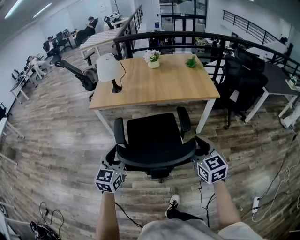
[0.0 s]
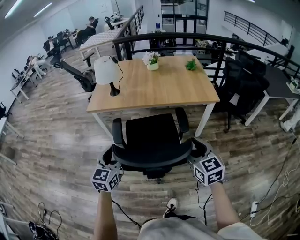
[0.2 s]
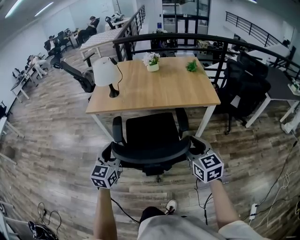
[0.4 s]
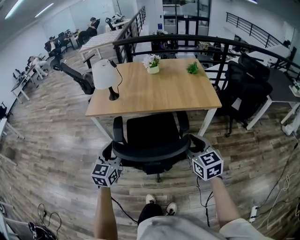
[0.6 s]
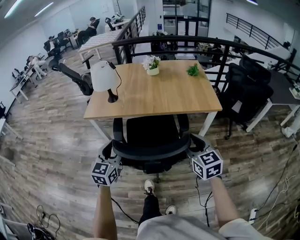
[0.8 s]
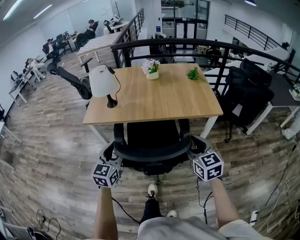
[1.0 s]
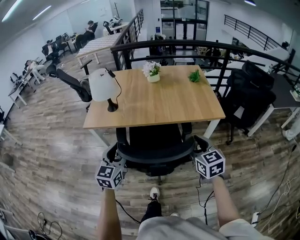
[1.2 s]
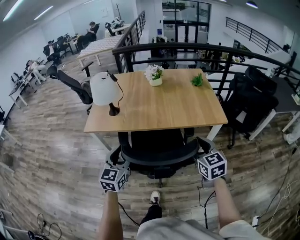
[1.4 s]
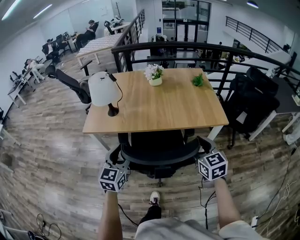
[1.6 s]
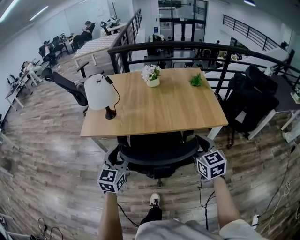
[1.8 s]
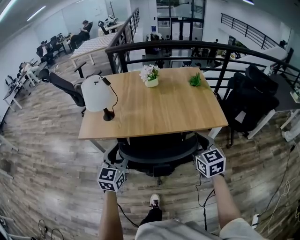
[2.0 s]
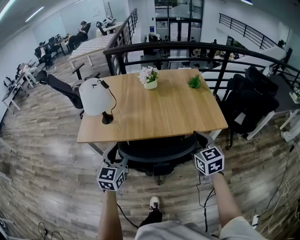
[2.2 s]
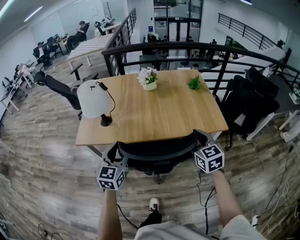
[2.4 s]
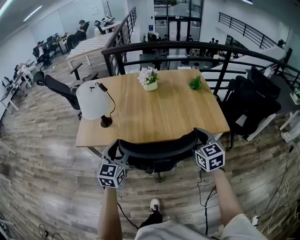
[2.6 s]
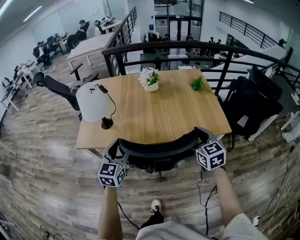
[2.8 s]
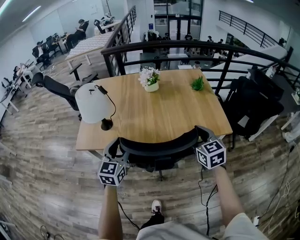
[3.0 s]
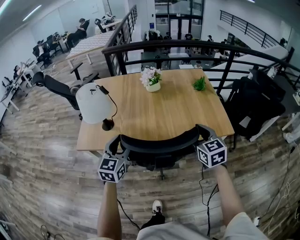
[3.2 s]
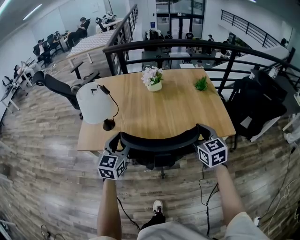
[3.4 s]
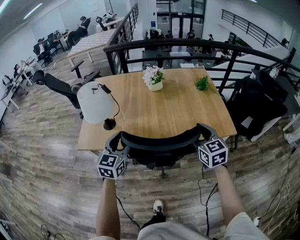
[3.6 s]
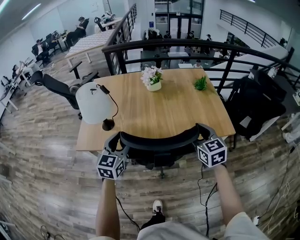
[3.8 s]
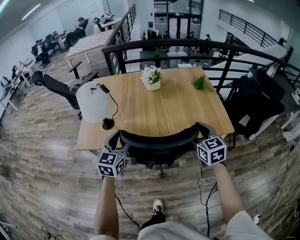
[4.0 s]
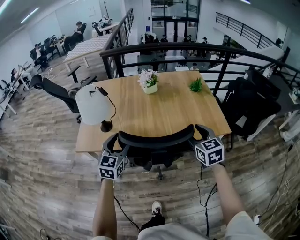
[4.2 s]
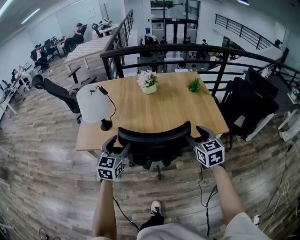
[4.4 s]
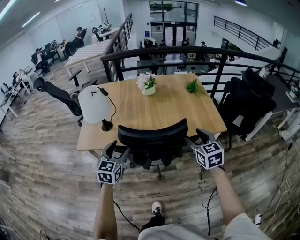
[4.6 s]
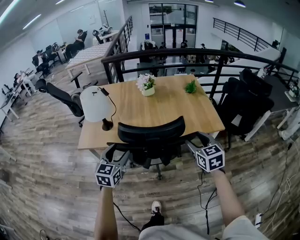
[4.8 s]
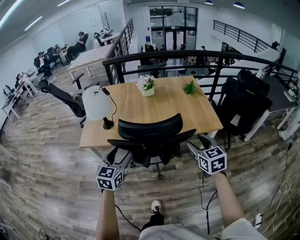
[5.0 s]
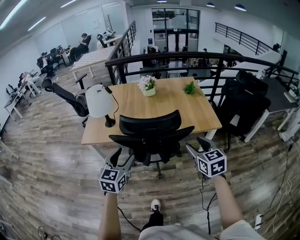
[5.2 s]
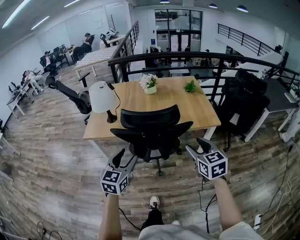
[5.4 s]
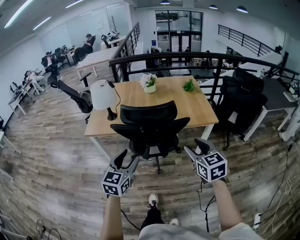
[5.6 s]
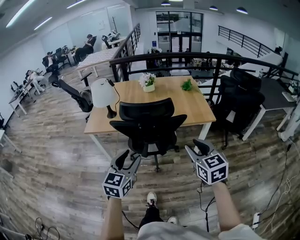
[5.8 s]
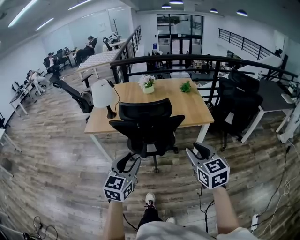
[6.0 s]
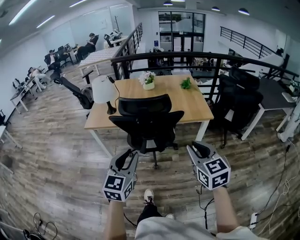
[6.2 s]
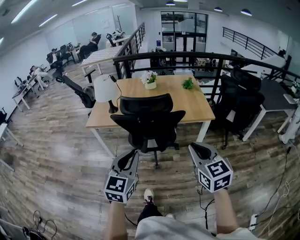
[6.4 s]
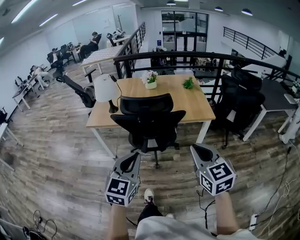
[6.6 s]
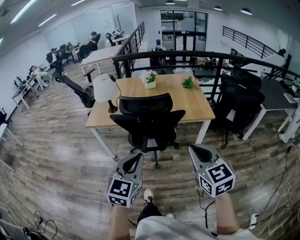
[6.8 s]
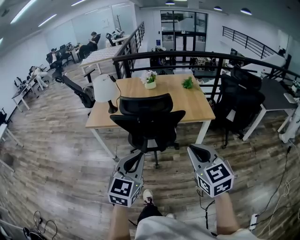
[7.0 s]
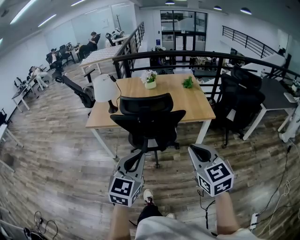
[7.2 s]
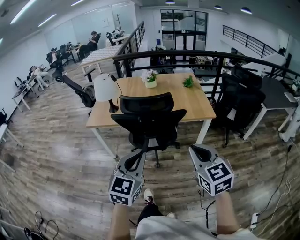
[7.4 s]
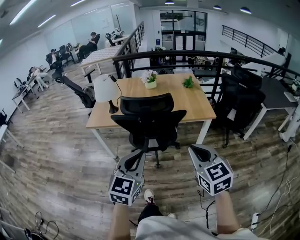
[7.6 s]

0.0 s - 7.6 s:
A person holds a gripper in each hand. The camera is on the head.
0.0 s - 1.6 s: Both grippers travel together forward, about 25 cm.
1.6 s - 3.0 s: The grippers both shift forward by some 15 cm.
3.0 s - 4.6 s: The right gripper goes approximately 5 cm backward.
4.6 s - 6.0 s: The right gripper shifts some 30 cm backward, and closes up, while the left gripper shifts roughly 35 cm backward and to the right, and closes.
6.0 s - 7.6 s: The right gripper closes, while the left gripper changes place by approximately 5 cm, and closes its fingers.

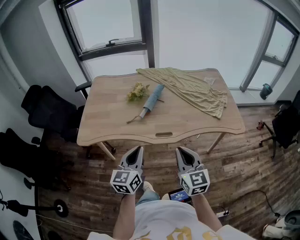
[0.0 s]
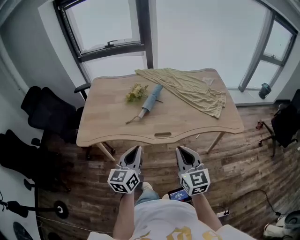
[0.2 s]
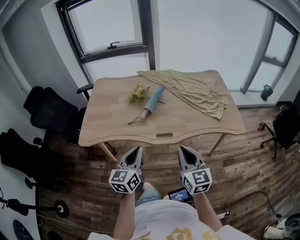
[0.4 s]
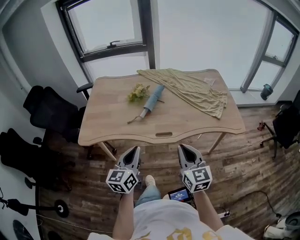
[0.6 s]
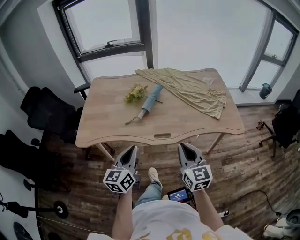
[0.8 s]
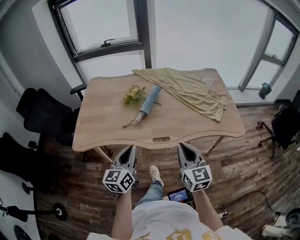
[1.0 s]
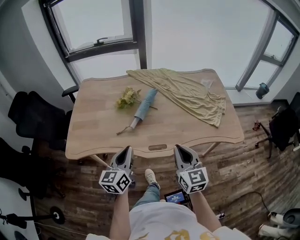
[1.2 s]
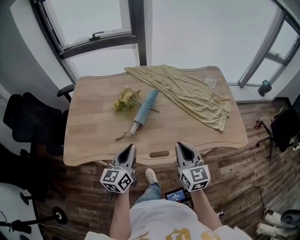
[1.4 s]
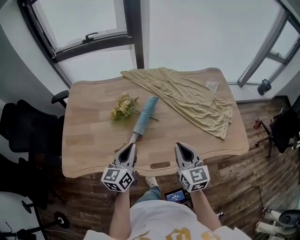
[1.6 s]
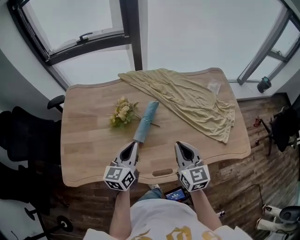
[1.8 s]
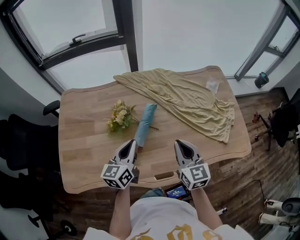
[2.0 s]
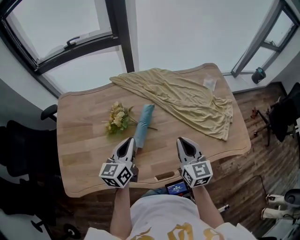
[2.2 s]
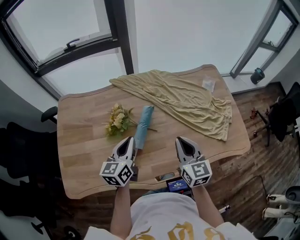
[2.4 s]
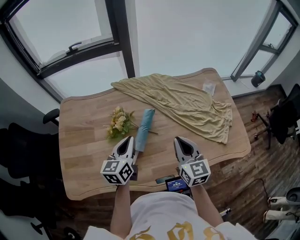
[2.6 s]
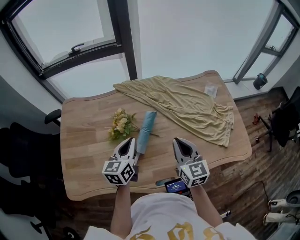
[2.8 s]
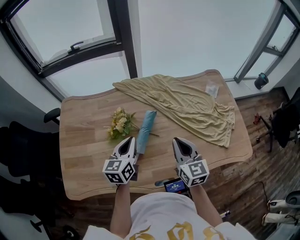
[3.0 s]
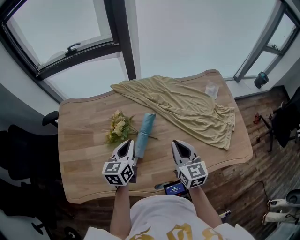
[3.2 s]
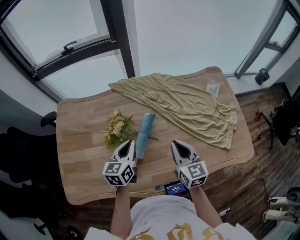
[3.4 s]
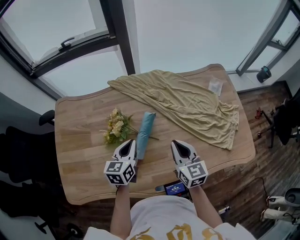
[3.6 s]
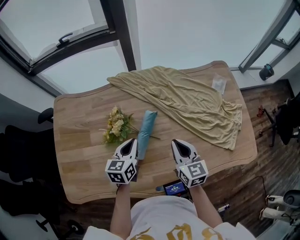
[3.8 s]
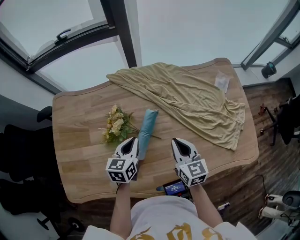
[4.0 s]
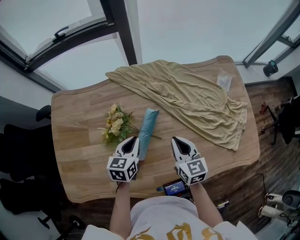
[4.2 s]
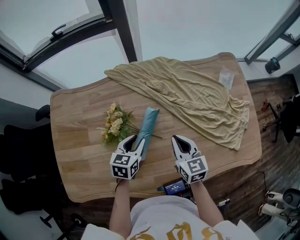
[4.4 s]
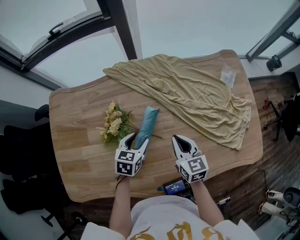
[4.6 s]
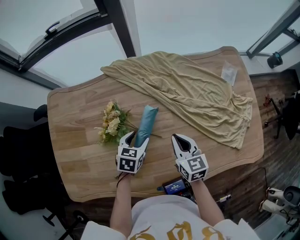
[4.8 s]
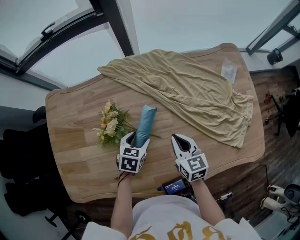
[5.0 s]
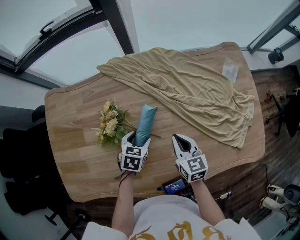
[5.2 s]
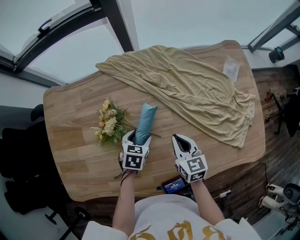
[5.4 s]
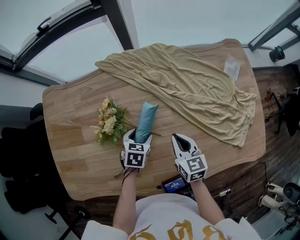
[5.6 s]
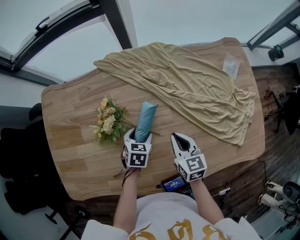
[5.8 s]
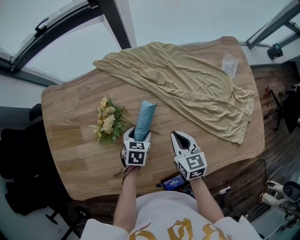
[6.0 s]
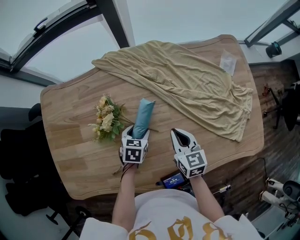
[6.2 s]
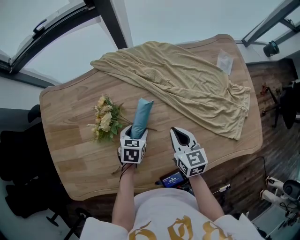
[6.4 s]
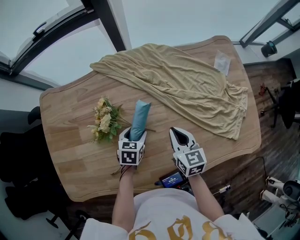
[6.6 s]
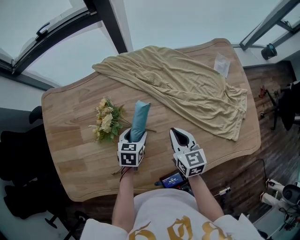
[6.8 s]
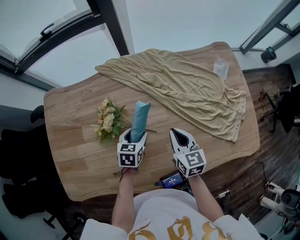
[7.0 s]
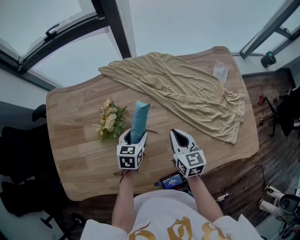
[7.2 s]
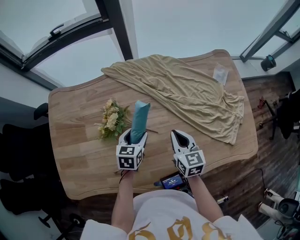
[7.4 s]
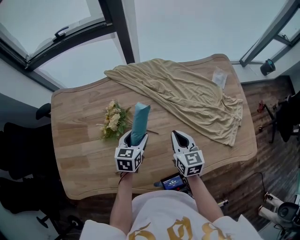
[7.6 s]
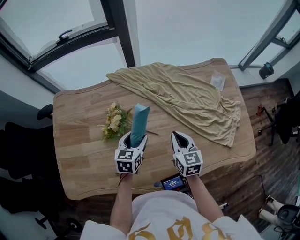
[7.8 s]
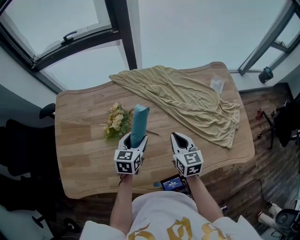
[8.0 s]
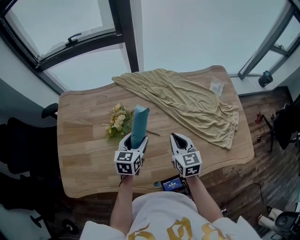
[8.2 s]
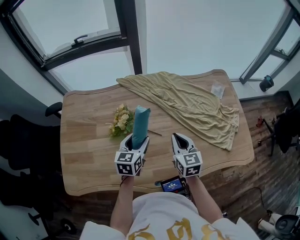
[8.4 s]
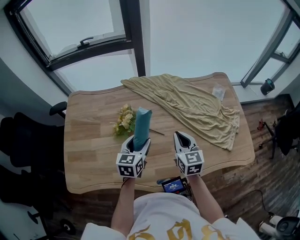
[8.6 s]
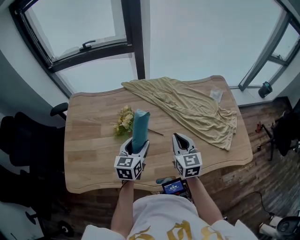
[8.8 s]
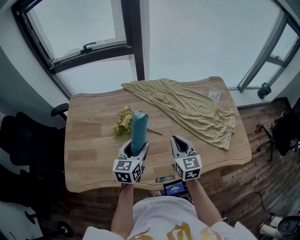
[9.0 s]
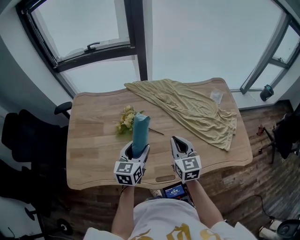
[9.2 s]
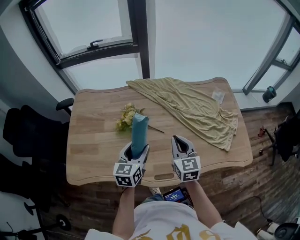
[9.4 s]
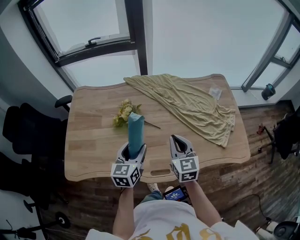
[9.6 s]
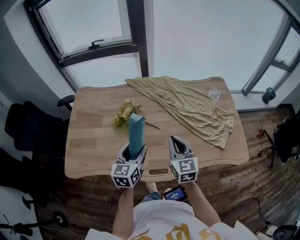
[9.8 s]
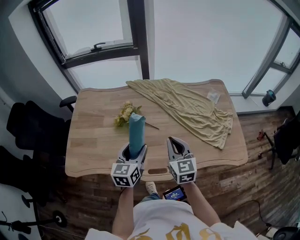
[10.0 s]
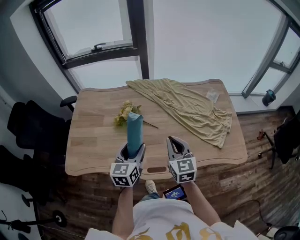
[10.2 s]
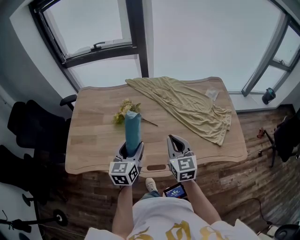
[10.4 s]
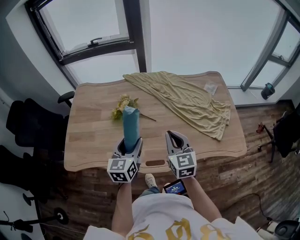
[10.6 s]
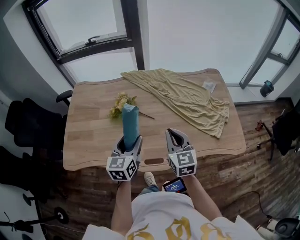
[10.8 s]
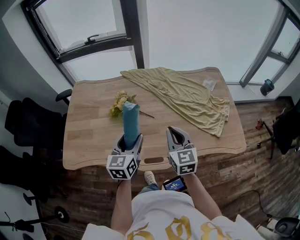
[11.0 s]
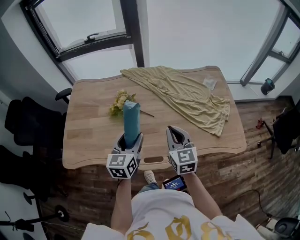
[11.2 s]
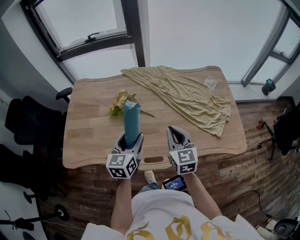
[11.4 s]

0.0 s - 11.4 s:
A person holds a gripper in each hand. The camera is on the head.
0.0 s - 1.4 s: Both grippers travel together forward, roughly 20 cm.
1.4 s - 2.8 s: Both grippers move forward, about 20 cm.
2.8 s - 4.2 s: The grippers both shift downward and forward by about 15 cm.
4.2 s - 5.6 s: The right gripper shifts approximately 10 cm downward. The left gripper shifts about 10 cm downward, rotates some 30 degrees, and opens.
5.6 s - 7.2 s: The grippers both shift upward by about 5 cm.
7.2 s - 8.6 s: The left gripper is displaced upward and backward by roughly 15 cm. Meanwhile the right gripper shifts some 10 cm upward.
8.6 s - 10.0 s: The two grippers go roughly 15 cm backward and upward.
10.0 s - 11.4 s: The grippers stay close to where they were, moving slightly.

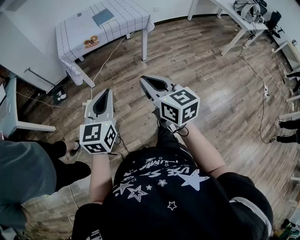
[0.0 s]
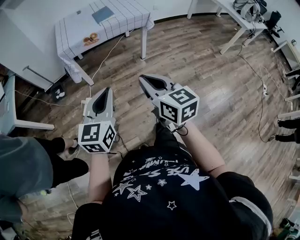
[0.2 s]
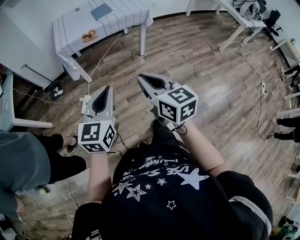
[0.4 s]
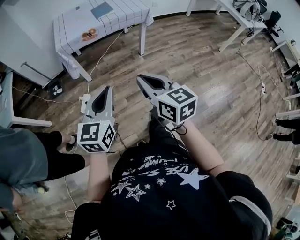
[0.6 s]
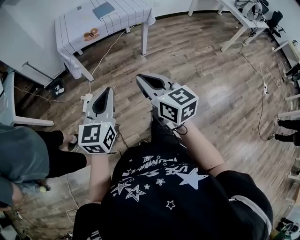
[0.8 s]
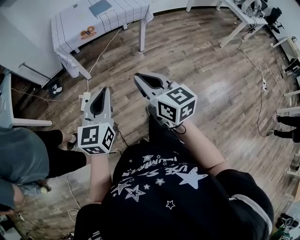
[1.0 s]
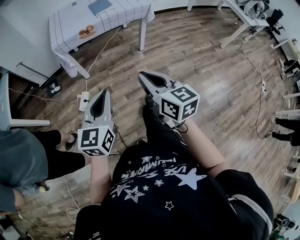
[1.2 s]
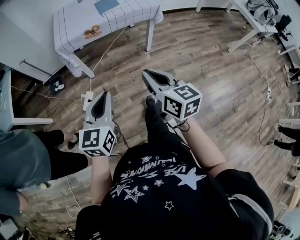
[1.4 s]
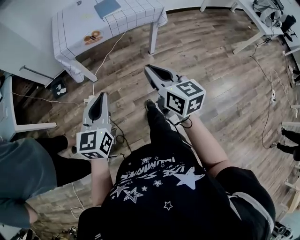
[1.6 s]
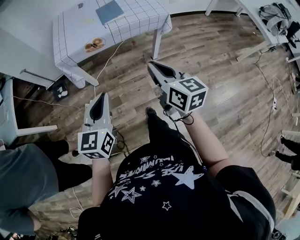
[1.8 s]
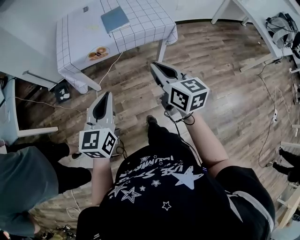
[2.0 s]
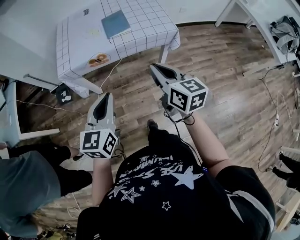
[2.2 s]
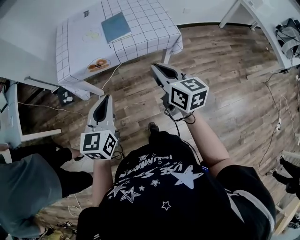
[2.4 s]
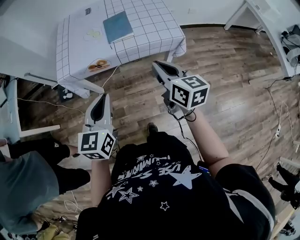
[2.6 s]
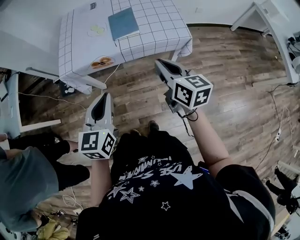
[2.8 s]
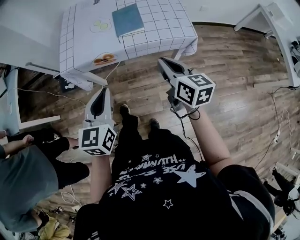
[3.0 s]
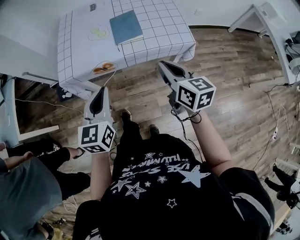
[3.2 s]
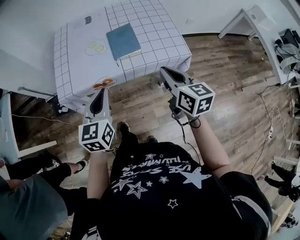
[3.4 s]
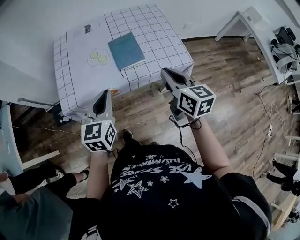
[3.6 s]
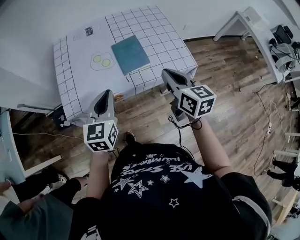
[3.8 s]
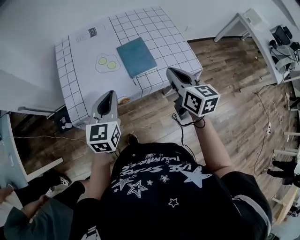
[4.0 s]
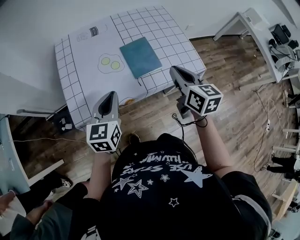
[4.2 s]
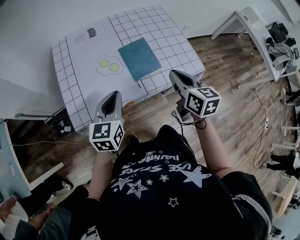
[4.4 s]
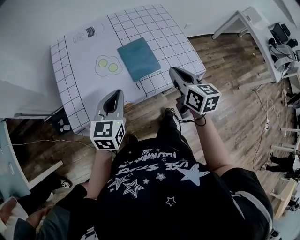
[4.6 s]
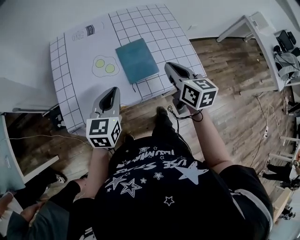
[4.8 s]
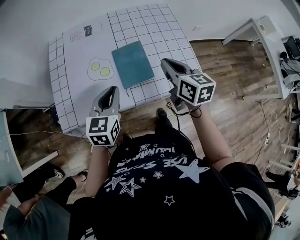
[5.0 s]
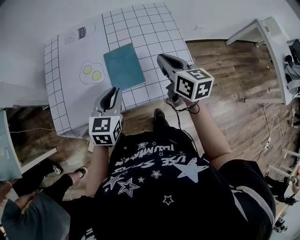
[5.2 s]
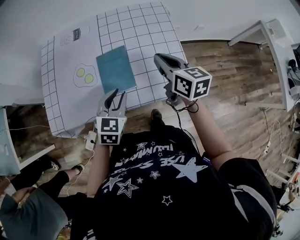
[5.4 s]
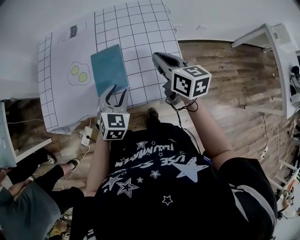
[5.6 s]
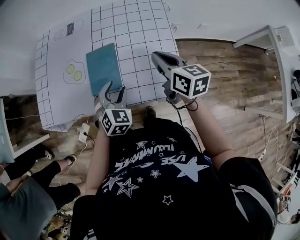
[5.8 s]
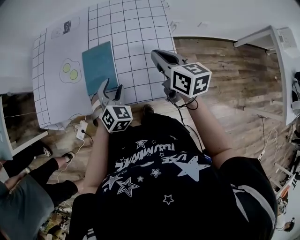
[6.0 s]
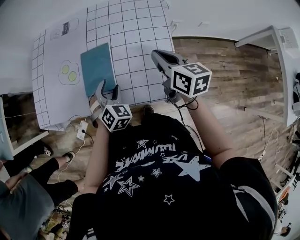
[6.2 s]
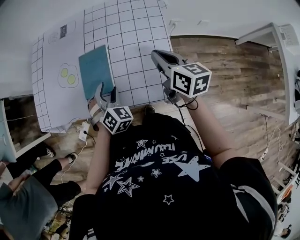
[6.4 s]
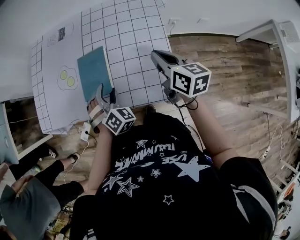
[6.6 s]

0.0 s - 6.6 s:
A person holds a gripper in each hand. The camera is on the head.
0.0 s - 1.6 s: The two grippers go some 15 cm forward.
1.6 s - 3.2 s: The grippers both shift forward by some 35 cm.
3.2 s - 5.0 s: The two grippers go approximately 25 cm forward.
5.0 s - 6.6 s: The right gripper changes place by about 20 cm. The left gripper moves some 20 cm, rotates some 60 degrees, and opens.
